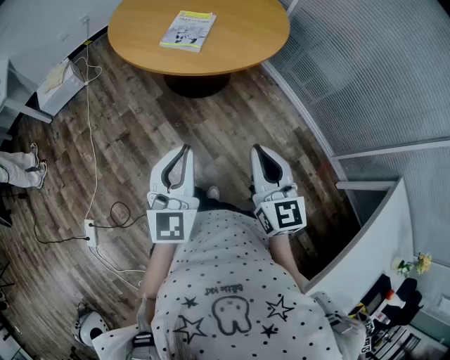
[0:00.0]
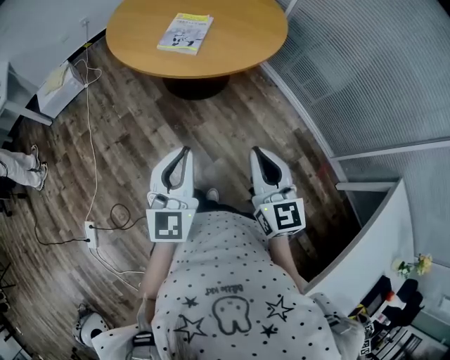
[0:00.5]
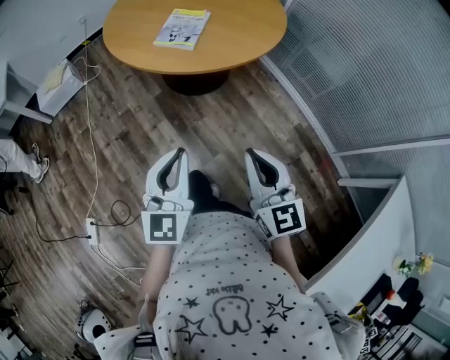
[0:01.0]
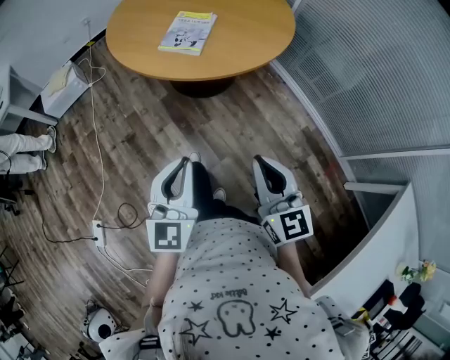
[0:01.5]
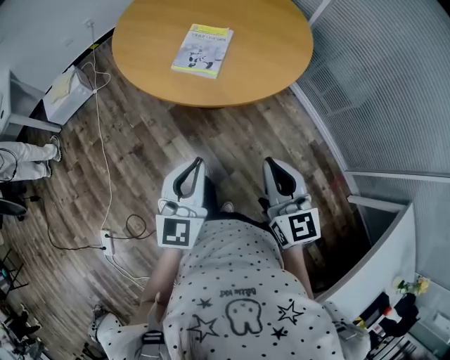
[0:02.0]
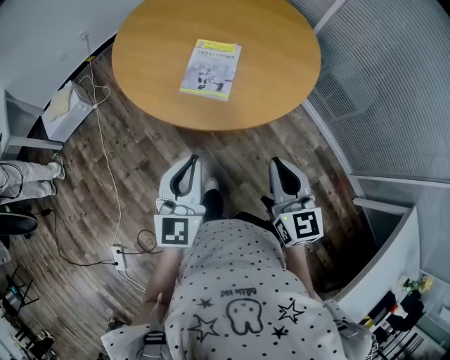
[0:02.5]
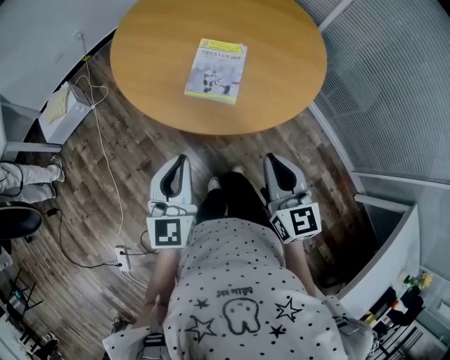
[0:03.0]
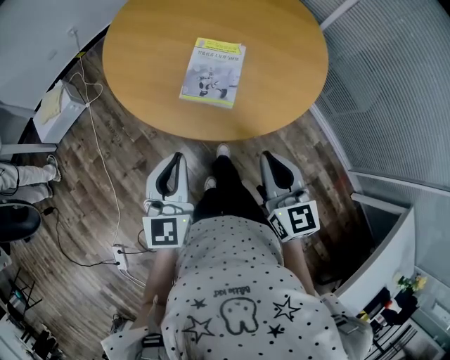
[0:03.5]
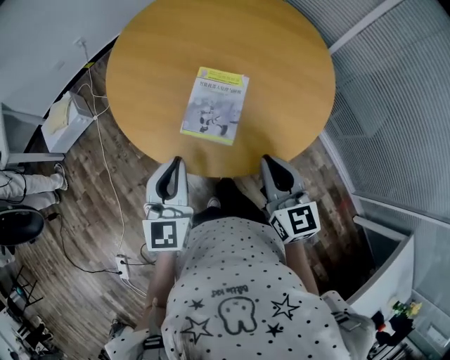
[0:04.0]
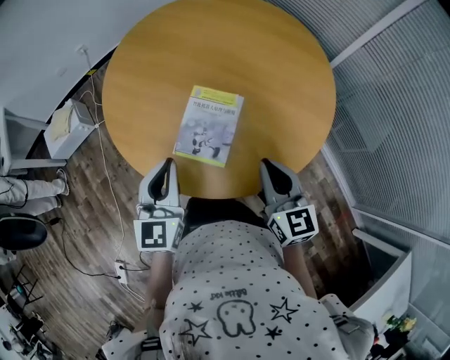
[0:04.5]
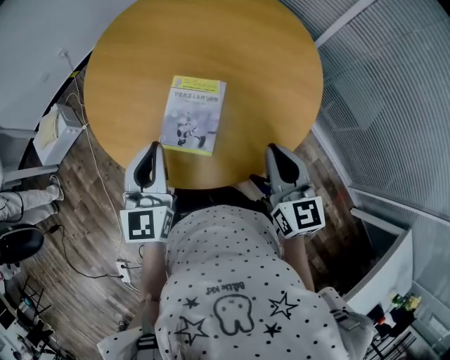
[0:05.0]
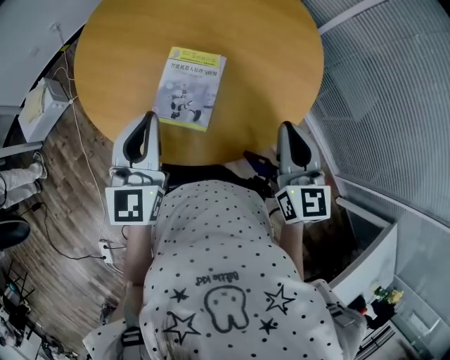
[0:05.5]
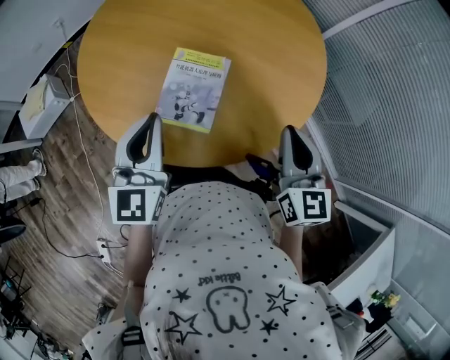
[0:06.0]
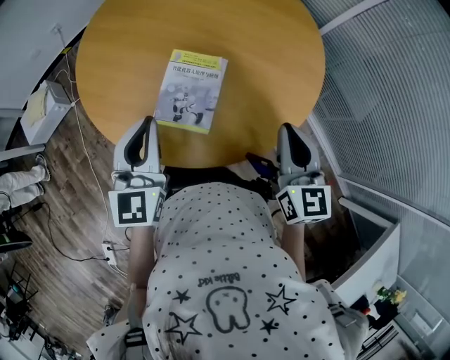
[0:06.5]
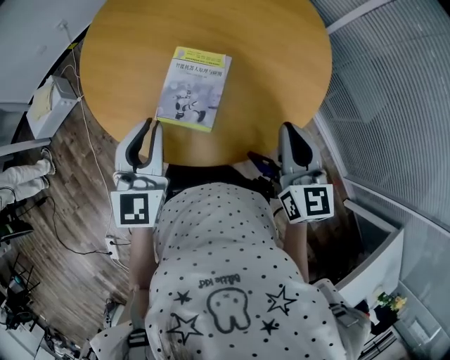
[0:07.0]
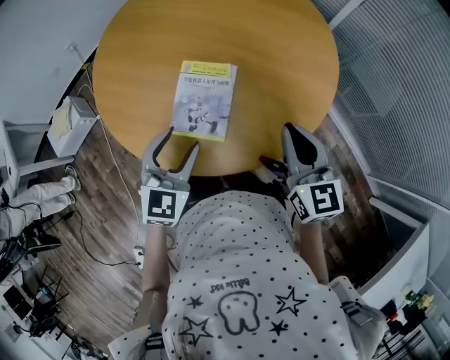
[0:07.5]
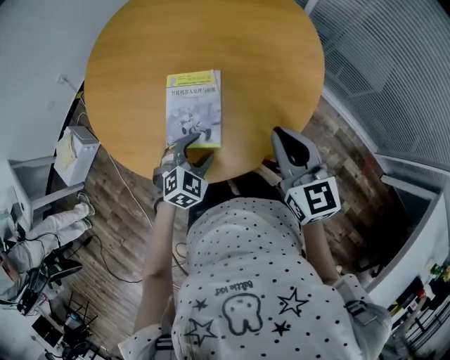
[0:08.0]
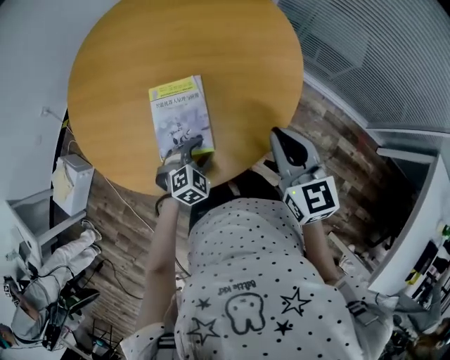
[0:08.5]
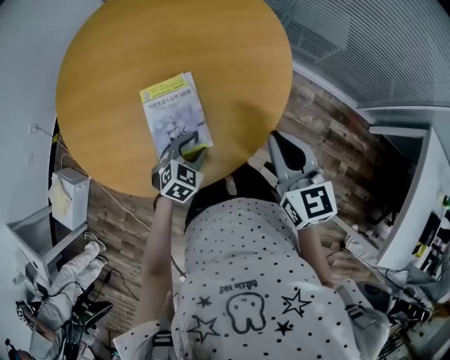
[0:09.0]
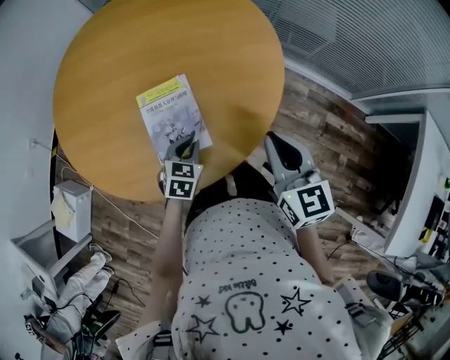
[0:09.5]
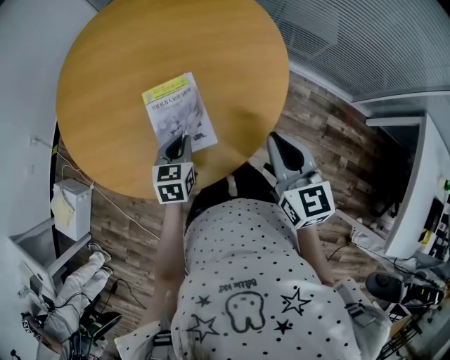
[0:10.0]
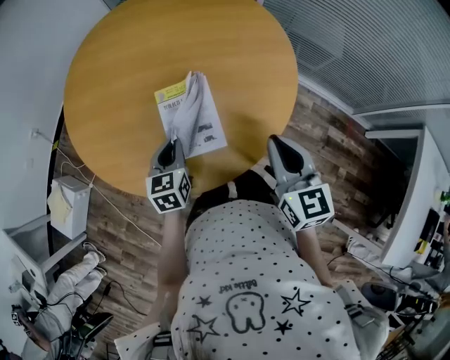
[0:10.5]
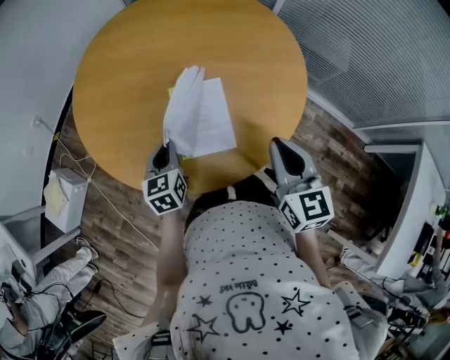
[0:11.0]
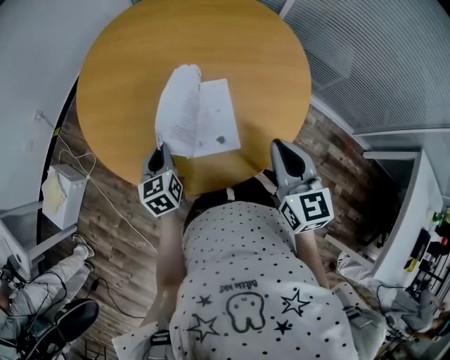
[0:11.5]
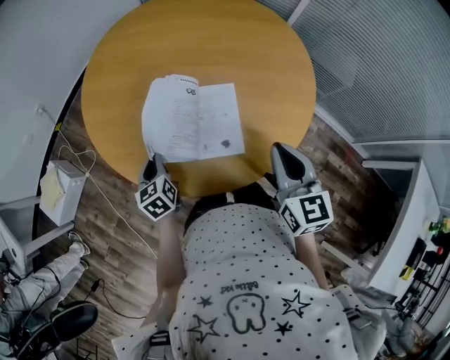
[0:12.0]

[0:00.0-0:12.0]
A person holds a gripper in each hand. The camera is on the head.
0:00.0 to 0:02.0: Both grippers move forward, about 15 cm.
0:02.0 to 0:04.0: Both grippers move forward, approximately 30 cm.
0:04.0 to 0:06.0: The right gripper shifts some 10 cm to the right and forward. The left gripper travels forward by approximately 10 cm.
0:06.0 to 0:08.0: The left gripper is displaced downward and to the right by some 25 cm, angles its fingers downward, by roughly 40 degrees, and opens its fingers.
0:08.0 to 0:10.0: The right gripper heads backward, covering roughly 5 cm, and turns by about 20 degrees; the left gripper moves to the left, about 5 cm, swivels approximately 40 degrees, and closes up.
0:10.0 to 0:12.0: The right gripper shifts about 10 cm to the left; the left gripper goes about 25 cm to the left, and swivels roughly 40 degrees.

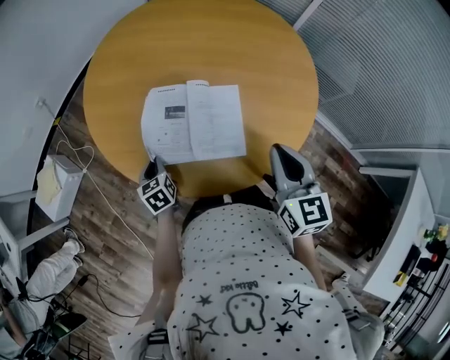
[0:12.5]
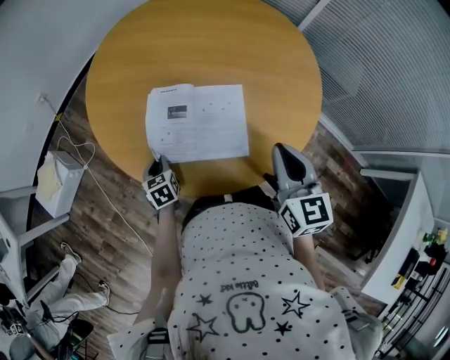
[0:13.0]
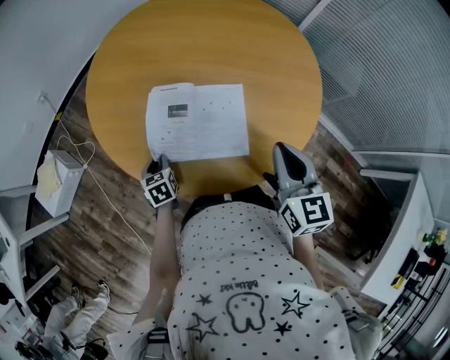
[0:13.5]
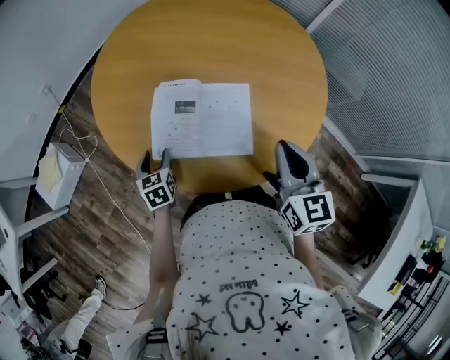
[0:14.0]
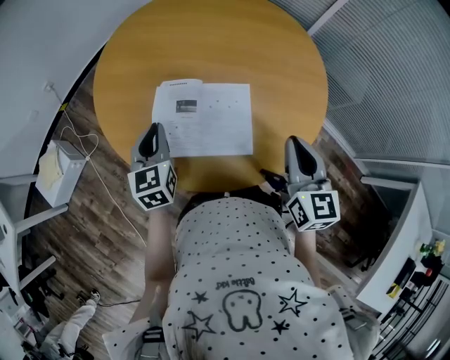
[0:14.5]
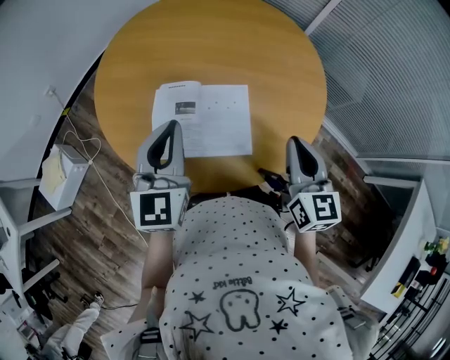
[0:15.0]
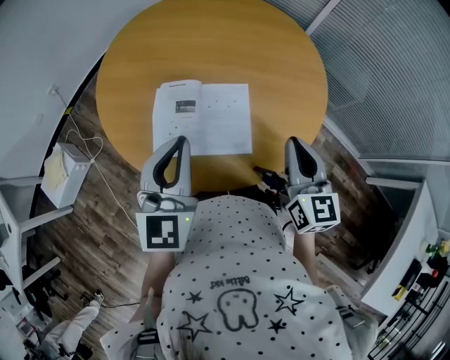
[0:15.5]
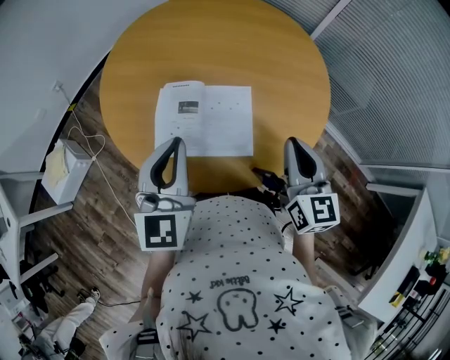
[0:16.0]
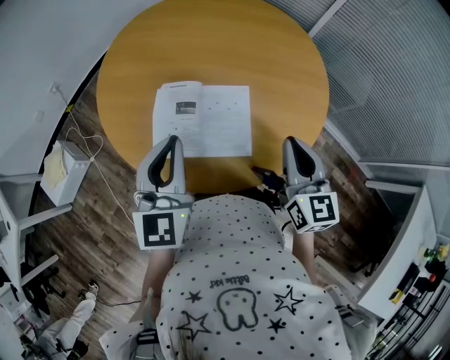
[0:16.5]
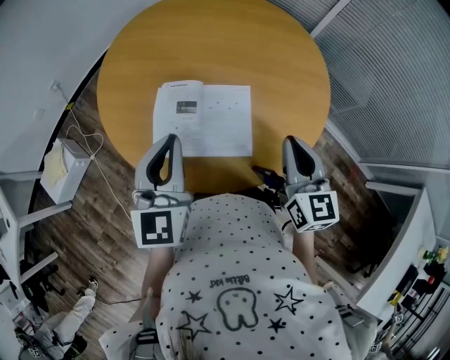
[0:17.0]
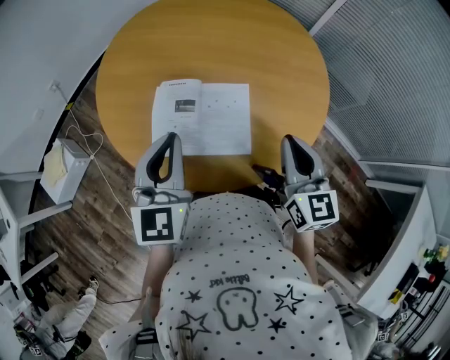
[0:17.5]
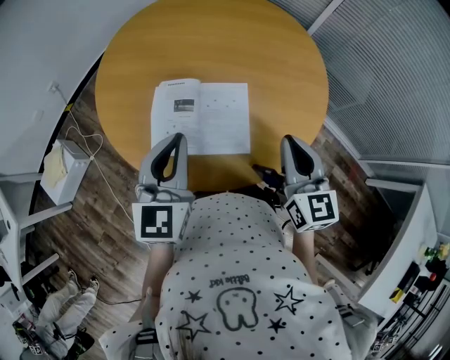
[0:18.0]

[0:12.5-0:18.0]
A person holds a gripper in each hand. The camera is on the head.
0:12.5 to 0:14.5: The left gripper is displaced upward by some 15 cm, swivels about 30 degrees, and opens, then closes again.
0:14.5 to 0:16.0: The left gripper shifts about 15 cm upward, to the right and backward, and changes its angle by roughly 20 degrees.
0:16.0 to 0:18.0: The grippers make only small movements.

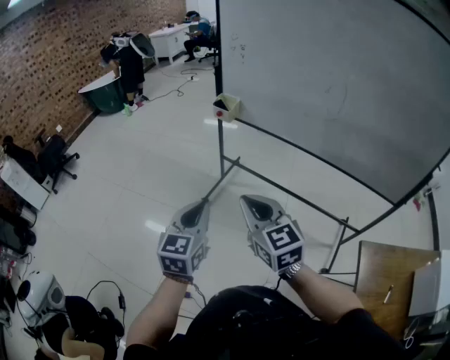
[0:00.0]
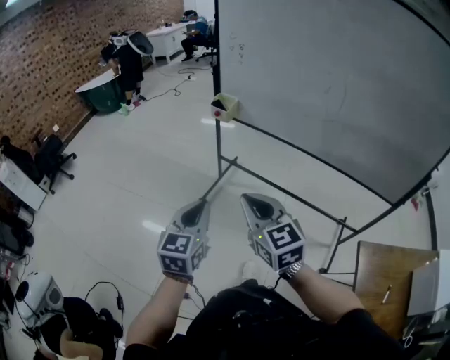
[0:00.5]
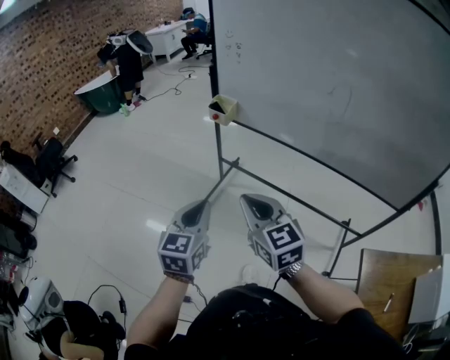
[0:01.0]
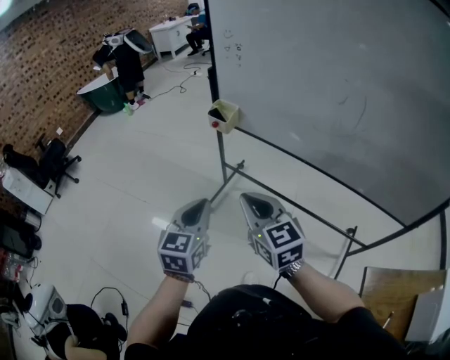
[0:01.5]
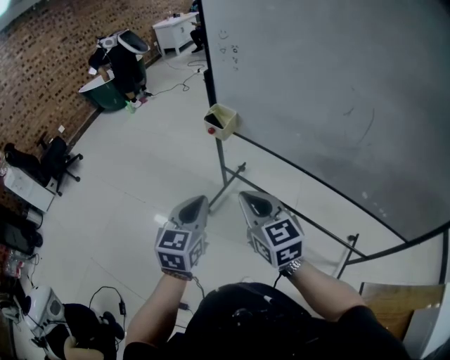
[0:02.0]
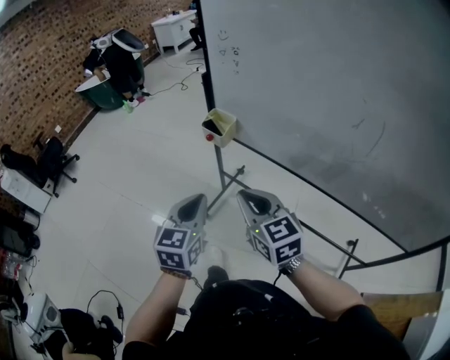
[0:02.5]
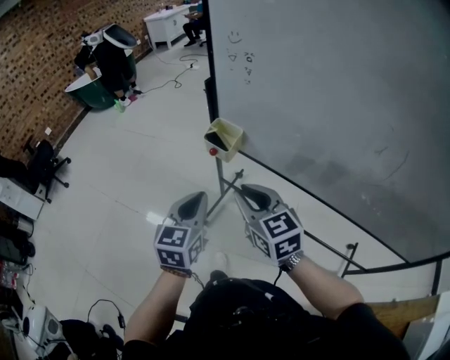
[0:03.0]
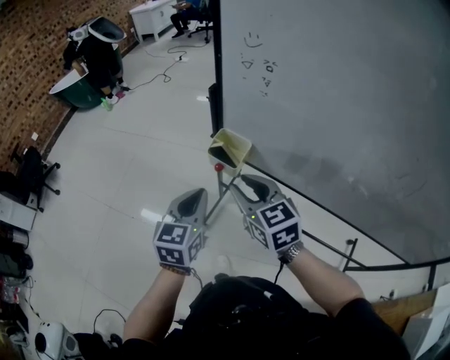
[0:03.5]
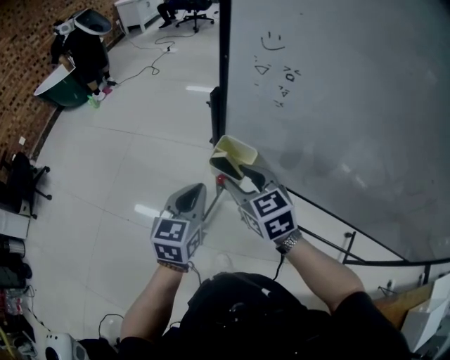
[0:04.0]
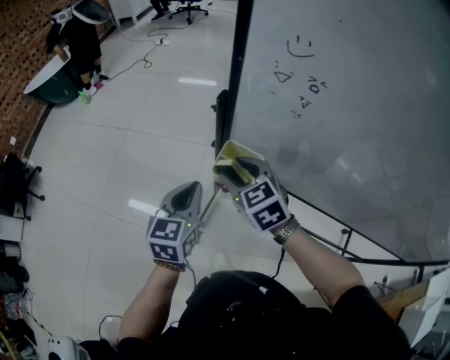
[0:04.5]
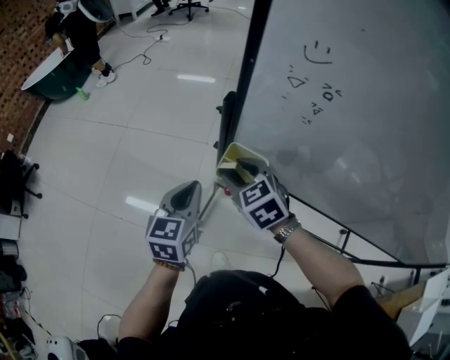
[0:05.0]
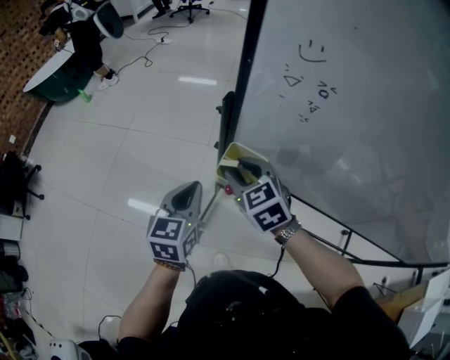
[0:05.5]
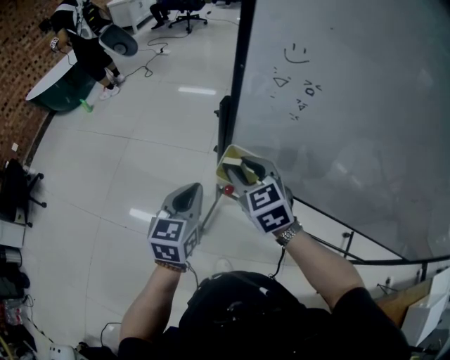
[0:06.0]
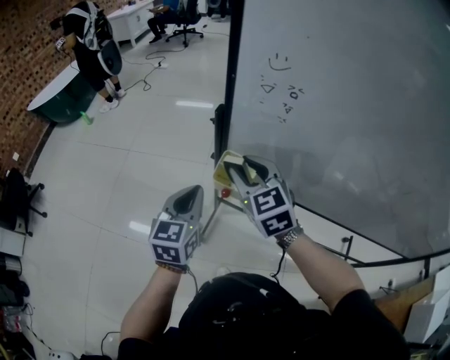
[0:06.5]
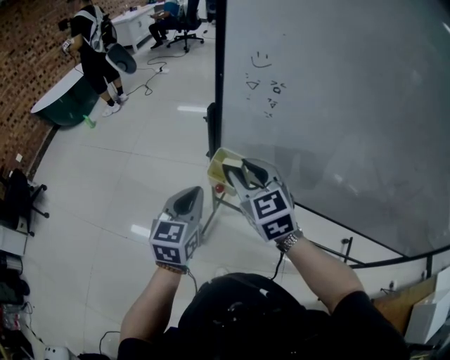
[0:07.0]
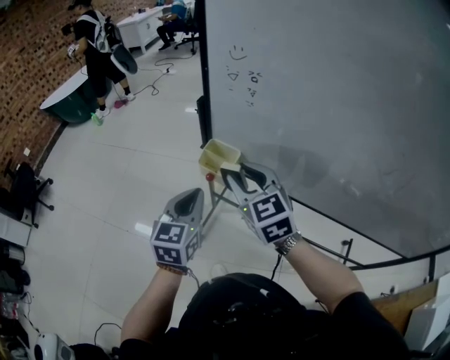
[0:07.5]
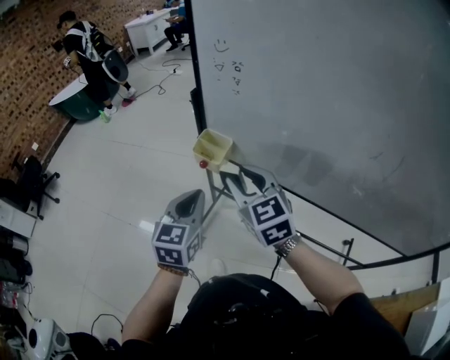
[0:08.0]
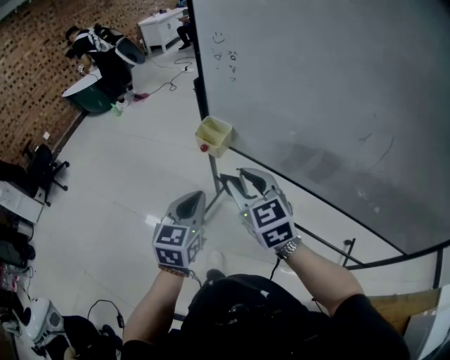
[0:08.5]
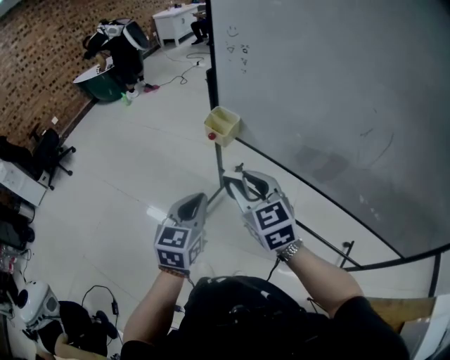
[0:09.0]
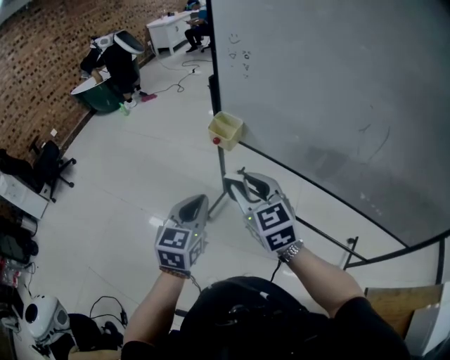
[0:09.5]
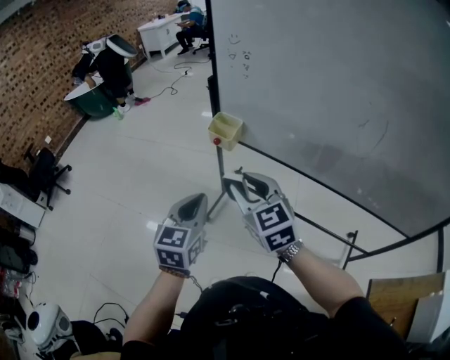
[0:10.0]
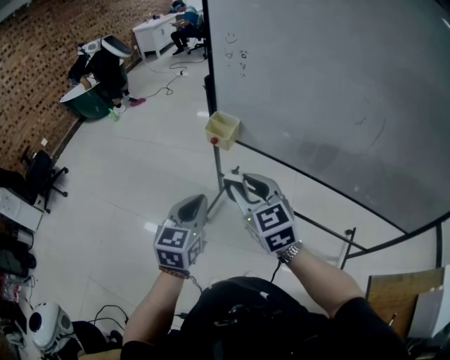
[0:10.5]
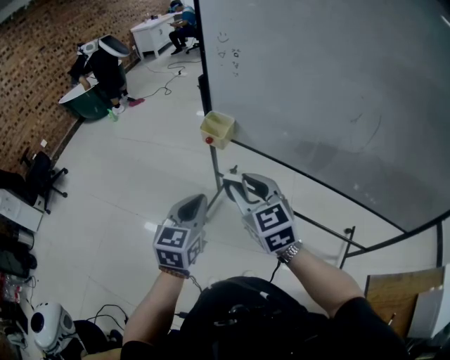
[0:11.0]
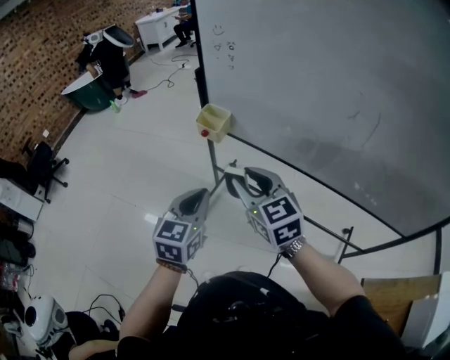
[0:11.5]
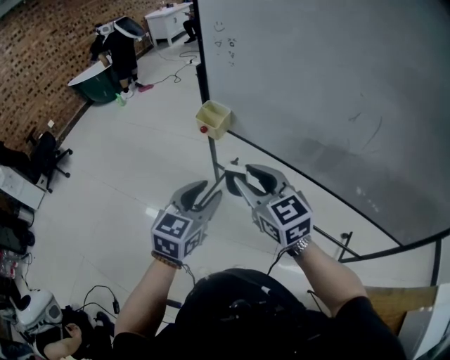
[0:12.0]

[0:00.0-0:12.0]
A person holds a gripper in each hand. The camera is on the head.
0:00.0 to 0:02.0: The two grippers go roughly 20 cm forward.
0:02.0 to 0:04.0: The two grippers go some 35 cm forward. The right gripper opens its fingers.
0:04.0 to 0:06.0: The right gripper shifts approximately 5 cm forward. The left gripper changes place by about 5 cm.
0:06.0 to 0:08.0: The right gripper travels backward, to the right and upward by about 20 cm; the left gripper travels backward and to the right by roughly 20 cm.
0:08.0 to 0:10.0: The grippers both shift backward by approximately 15 cm.
0:10.0 to 0:12.0: Both grippers move to the right, about 10 cm. The left gripper opens up.
